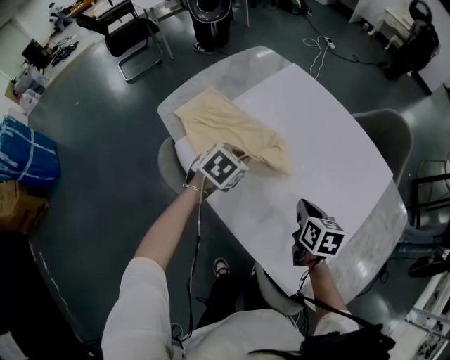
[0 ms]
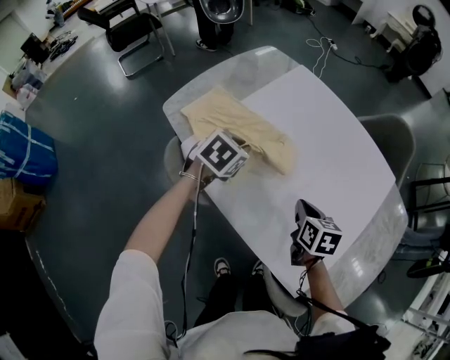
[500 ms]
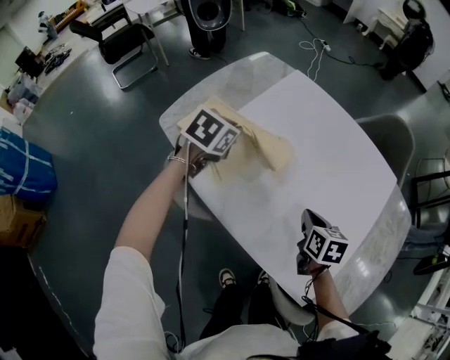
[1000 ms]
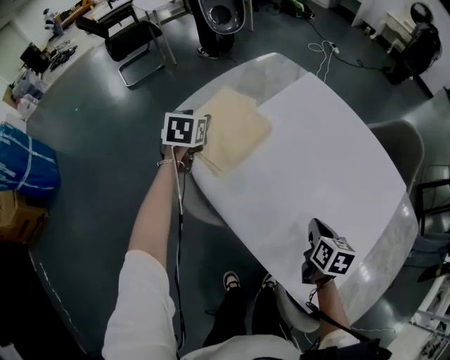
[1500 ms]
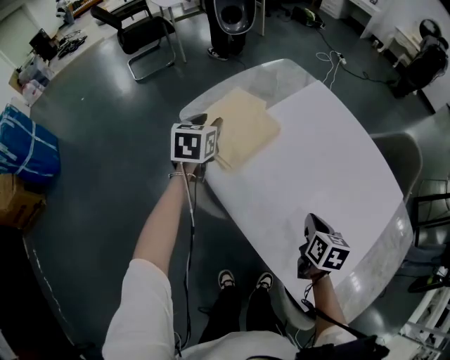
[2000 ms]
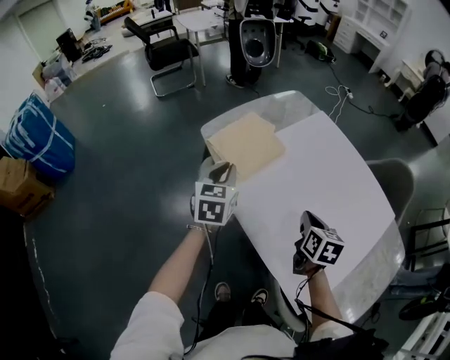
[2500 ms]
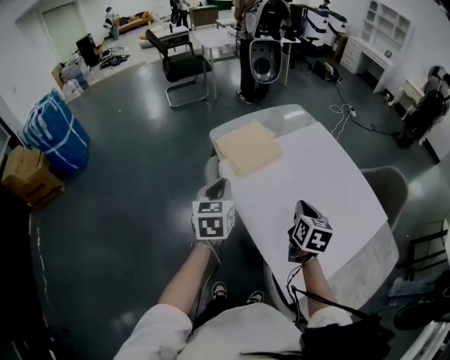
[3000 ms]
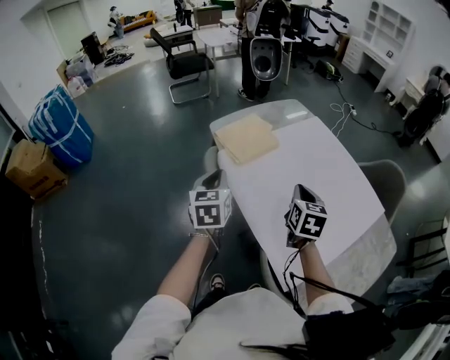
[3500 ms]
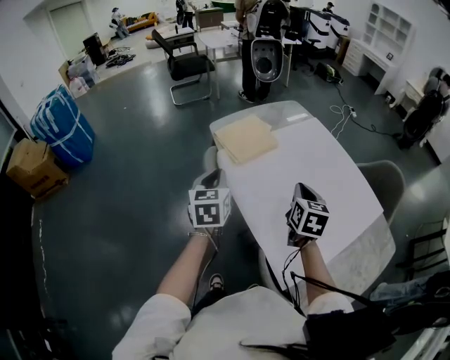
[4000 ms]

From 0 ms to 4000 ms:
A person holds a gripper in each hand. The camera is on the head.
From 0 ms to 2000 ms: The right gripper shifts roughly 5 cm to the left. The left gripper travels to the left by about 25 cm, swivels some 40 degrees, and opens.
From 2000 ms to 4000 ms: The right gripper goes approximately 20 cm upward, and turns by roughly 20 degrees, while the left gripper travels backward and upward by some 35 cm, swivels some 20 degrees, and closes up.

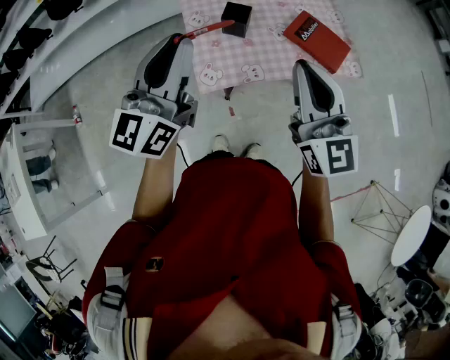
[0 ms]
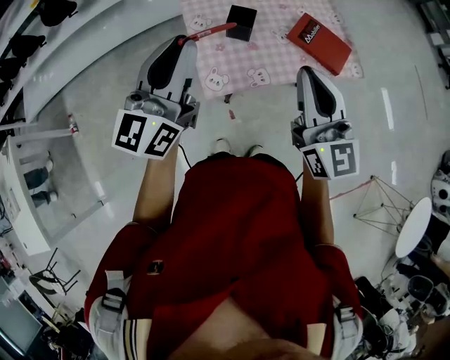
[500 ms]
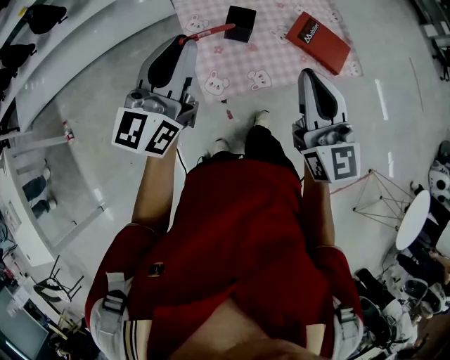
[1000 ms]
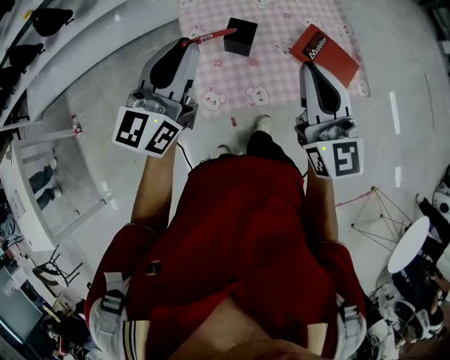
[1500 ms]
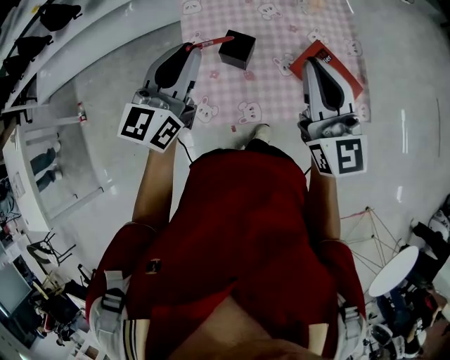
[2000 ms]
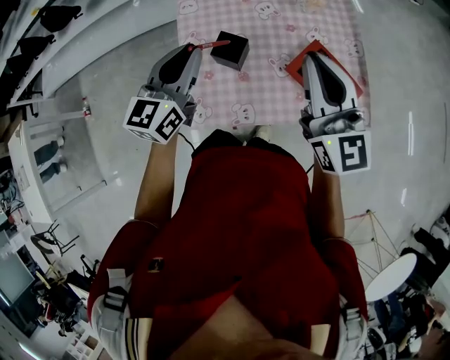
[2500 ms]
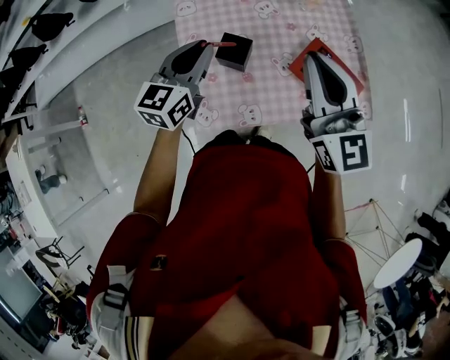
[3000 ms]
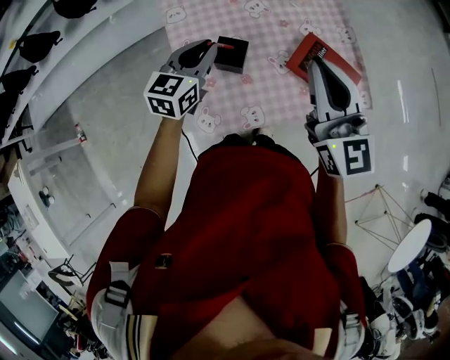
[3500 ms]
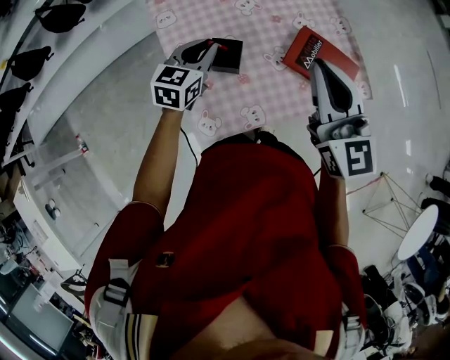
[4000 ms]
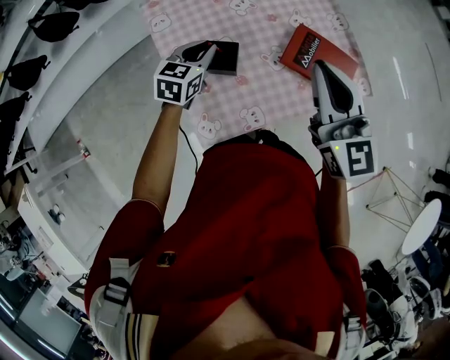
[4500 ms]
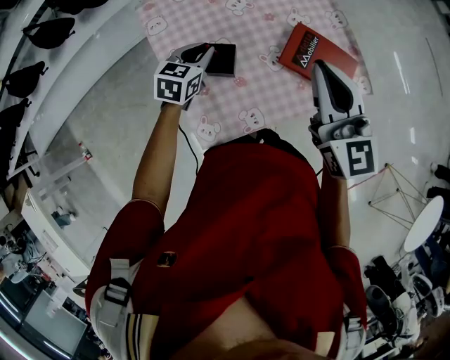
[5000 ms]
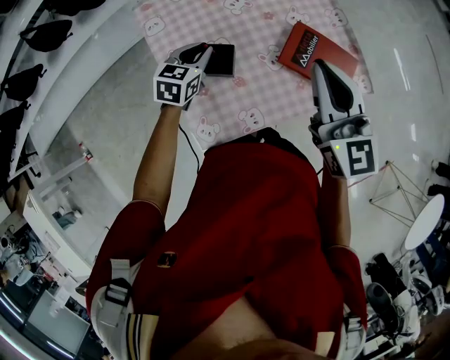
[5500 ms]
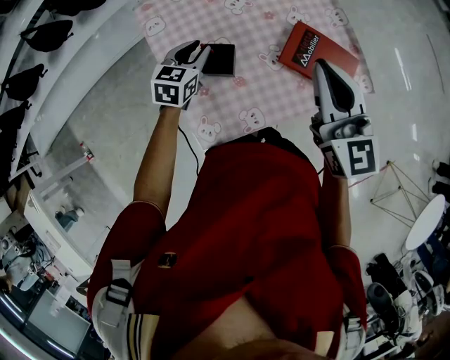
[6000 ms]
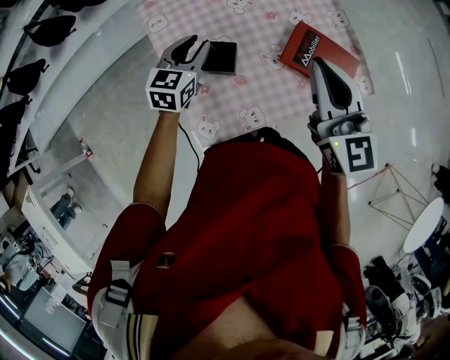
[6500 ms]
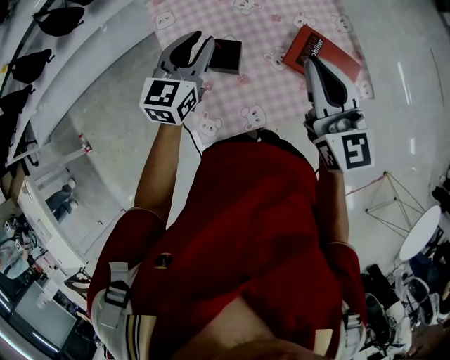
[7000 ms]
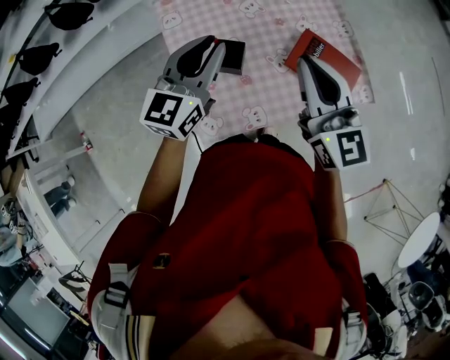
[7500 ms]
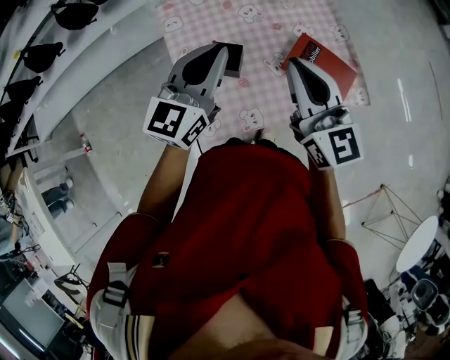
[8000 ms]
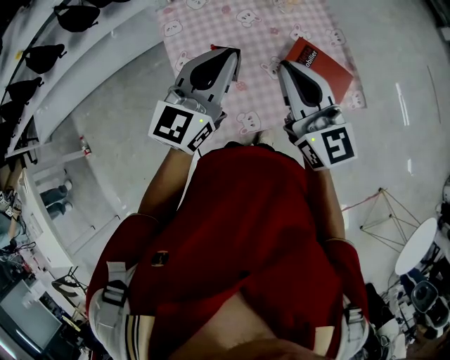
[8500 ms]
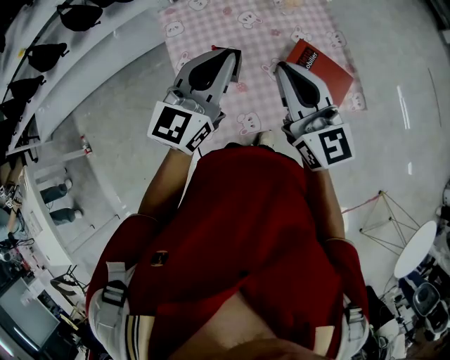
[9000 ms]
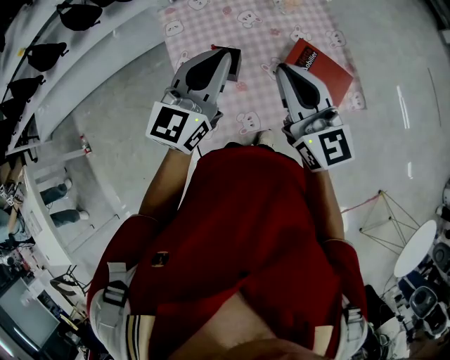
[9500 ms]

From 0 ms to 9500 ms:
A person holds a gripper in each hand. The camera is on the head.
From 0 ms to 2000 ms: The right gripper shifts approximately 20 cm forward, while the left gripper is displaced forward and downward by some 20 cm.
From 2000 ms to 4000 ms: The left gripper goes approximately 20 cm downward and forward, and turns by approximately 30 degrees.
From 4000 ms to 5500 ms: The left gripper goes approximately 5 cm downward.
From 5500 ms to 7500 ms: The left gripper goes approximately 20 cm upward, and points its fingers some 30 degrees further upward.
From 7500 ms to 9500 ms: The left gripper shifts by roughly 5 cm.

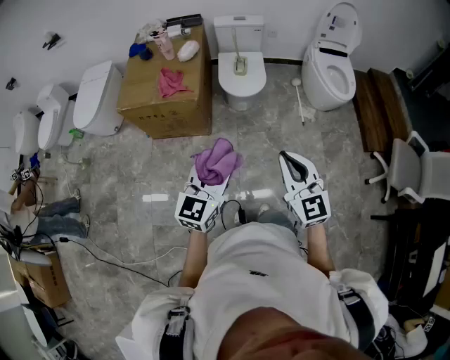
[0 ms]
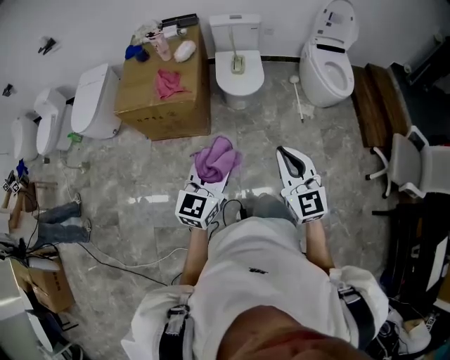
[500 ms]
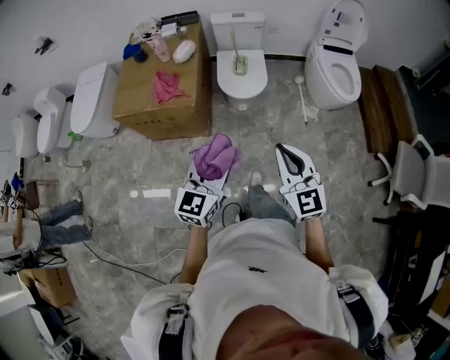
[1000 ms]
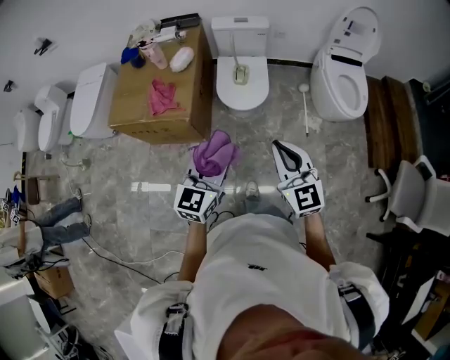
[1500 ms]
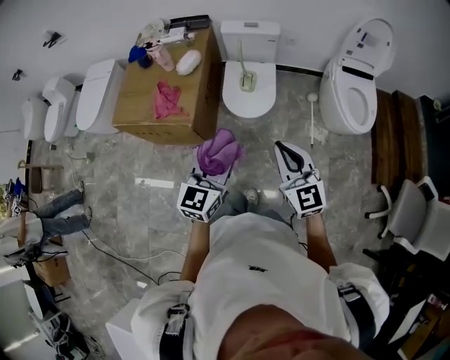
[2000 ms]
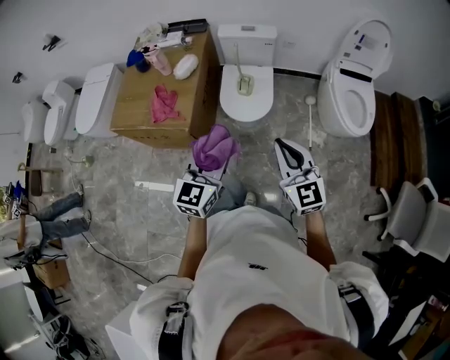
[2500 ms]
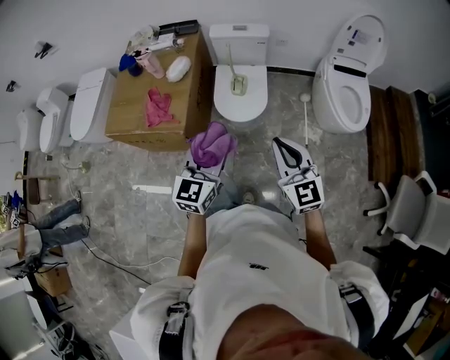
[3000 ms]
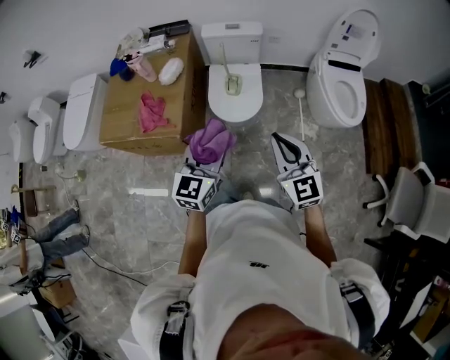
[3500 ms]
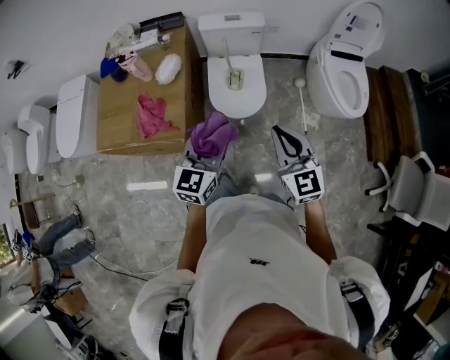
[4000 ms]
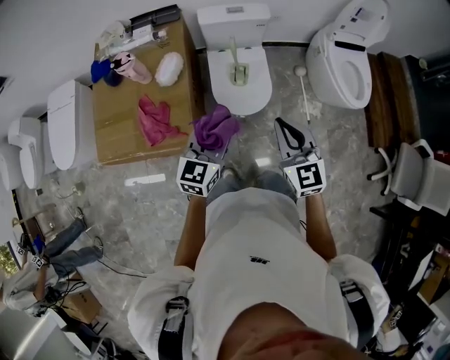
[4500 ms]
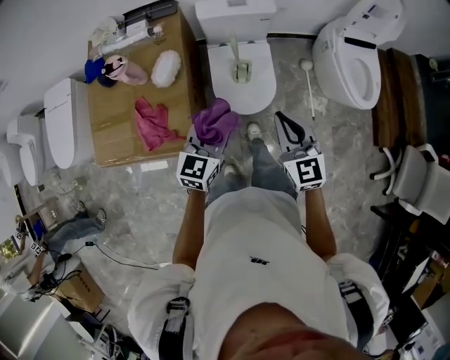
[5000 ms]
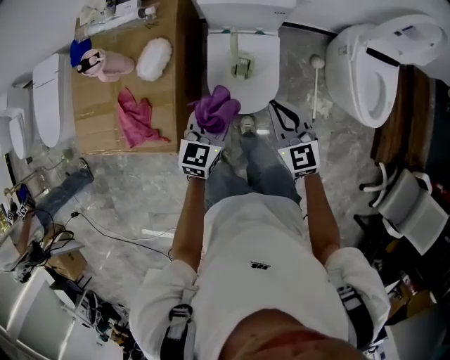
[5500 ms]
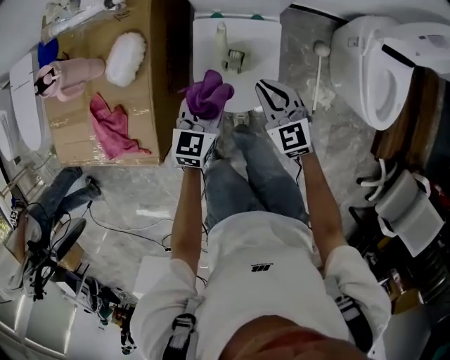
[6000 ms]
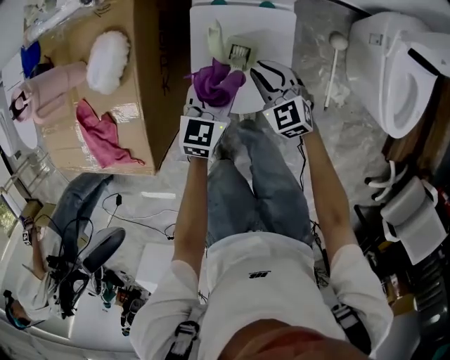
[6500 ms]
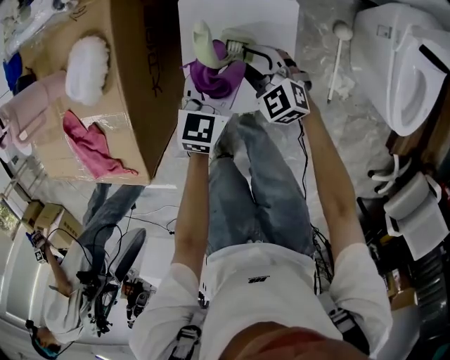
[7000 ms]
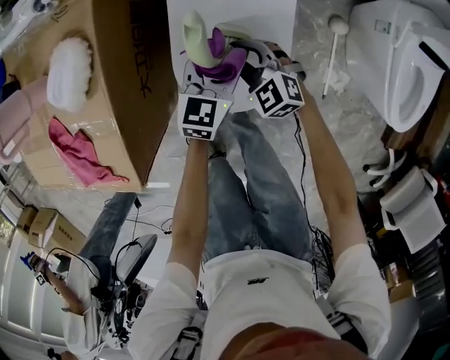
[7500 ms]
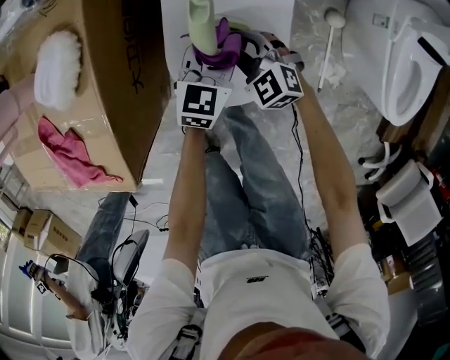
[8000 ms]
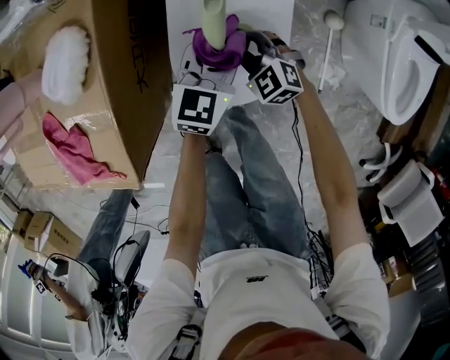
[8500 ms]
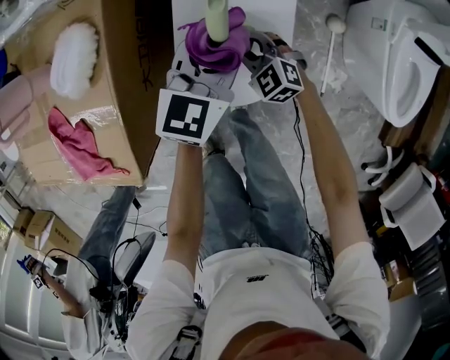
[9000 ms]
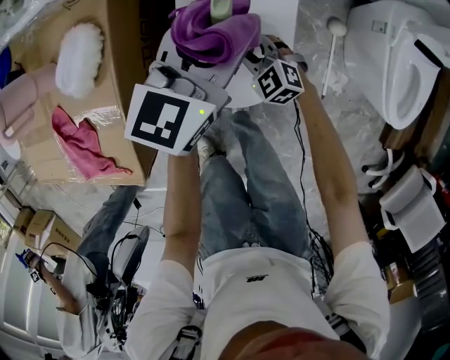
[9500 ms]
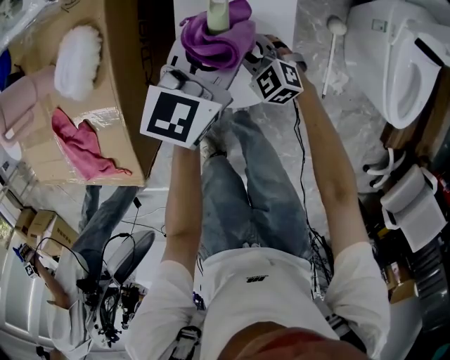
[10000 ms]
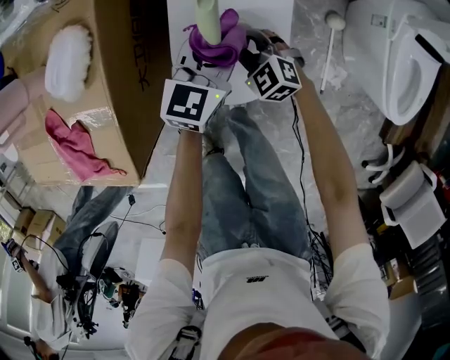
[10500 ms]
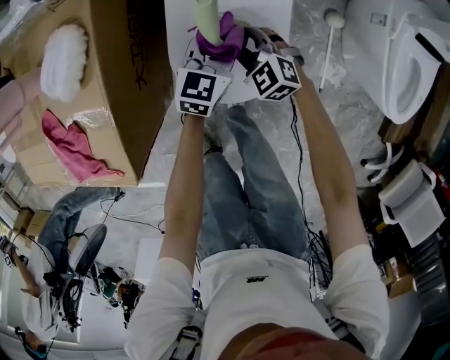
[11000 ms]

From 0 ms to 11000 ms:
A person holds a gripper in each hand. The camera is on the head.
From 0 ms to 2000 ms: Both grippers move forward, roughly 30 cm.
From 2000 ms to 3500 ms: Both grippers move forward, about 5 cm.
From 3500 ms to 5500 ms: Both grippers travel together forward and downward, about 40 cm.
From 5500 ms to 7500 ms: The grippers both shift downward and forward by some 40 cm. The right gripper changes its angle by roughly 40 degrees, and opens its fingers.
From 7500 ms to 9000 ms: The left gripper shifts some 10 cm upward, and closes its fingers.
From 9000 ms to 11000 ms: The left gripper moves downward, roughly 15 cm.

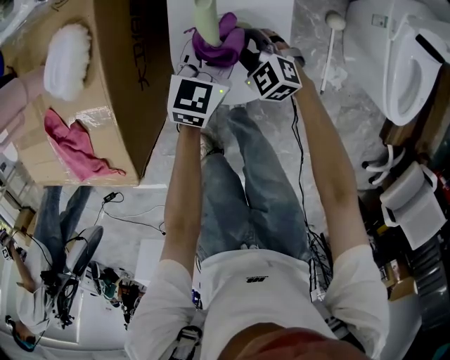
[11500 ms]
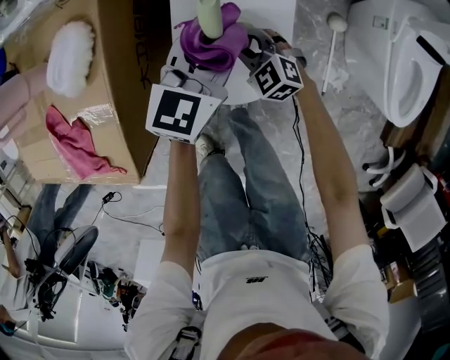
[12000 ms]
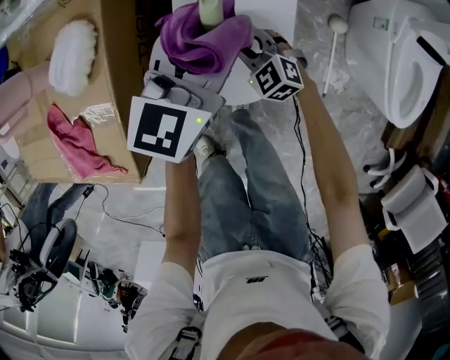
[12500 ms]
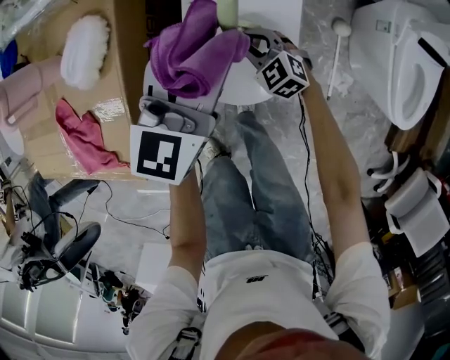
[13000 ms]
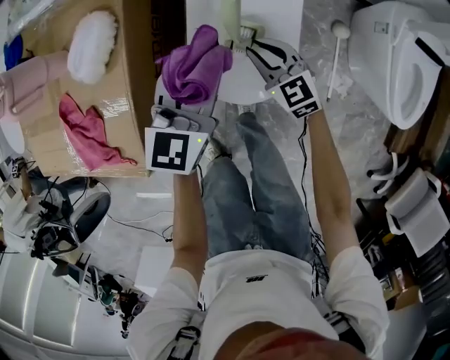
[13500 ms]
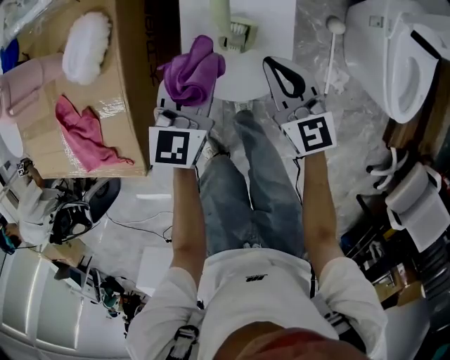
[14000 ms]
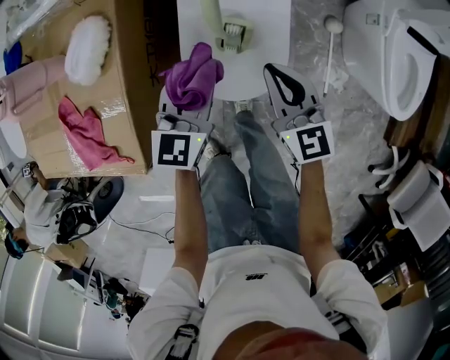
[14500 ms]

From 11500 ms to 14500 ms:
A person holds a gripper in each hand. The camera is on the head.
From 11500 ms to 13000 ms: The left gripper shifts roughly 15 cm upward.
From 13000 ms to 14500 ms: The right gripper goes roughly 20 cm upward, and rotates about 40 degrees. The left gripper travels downward and backward by about 10 cm.
